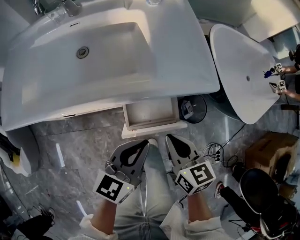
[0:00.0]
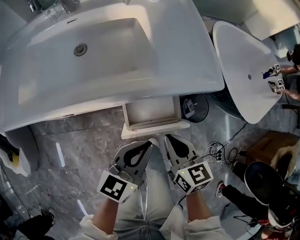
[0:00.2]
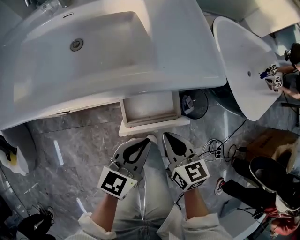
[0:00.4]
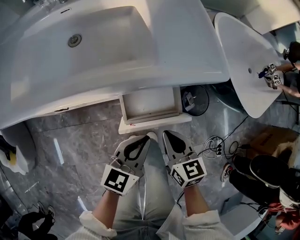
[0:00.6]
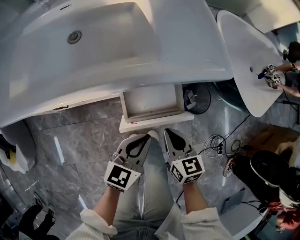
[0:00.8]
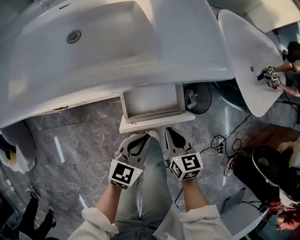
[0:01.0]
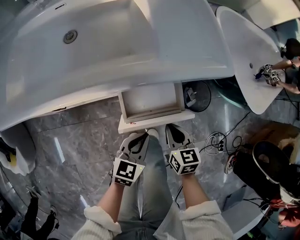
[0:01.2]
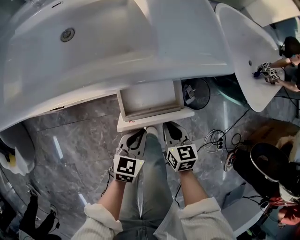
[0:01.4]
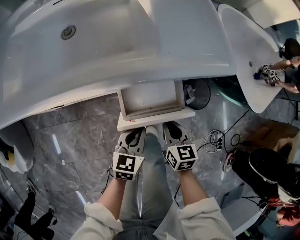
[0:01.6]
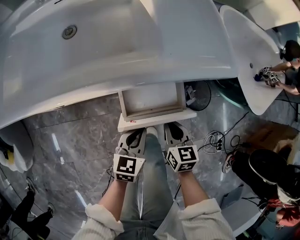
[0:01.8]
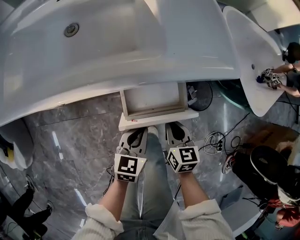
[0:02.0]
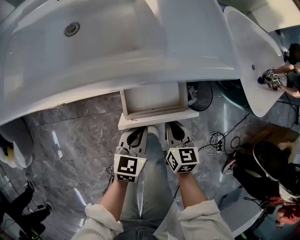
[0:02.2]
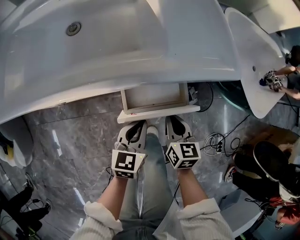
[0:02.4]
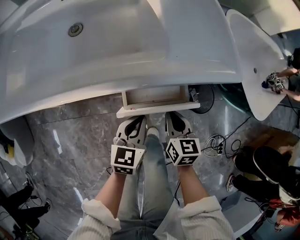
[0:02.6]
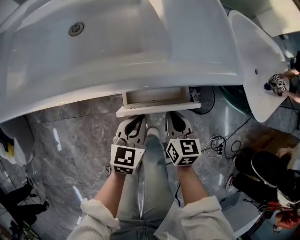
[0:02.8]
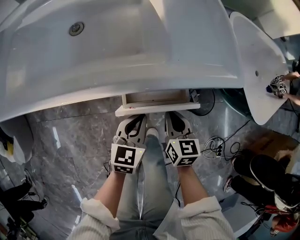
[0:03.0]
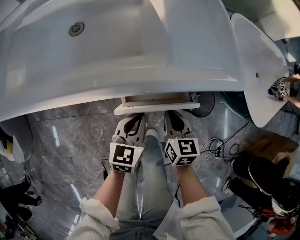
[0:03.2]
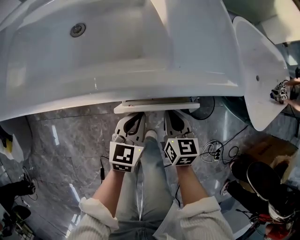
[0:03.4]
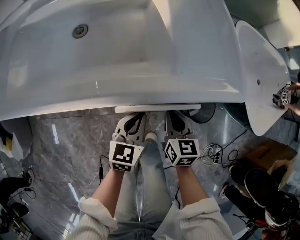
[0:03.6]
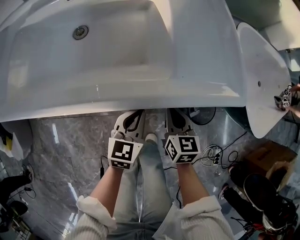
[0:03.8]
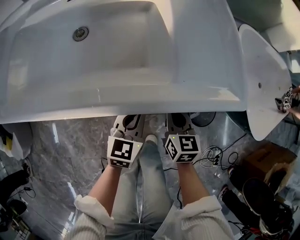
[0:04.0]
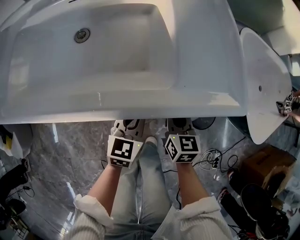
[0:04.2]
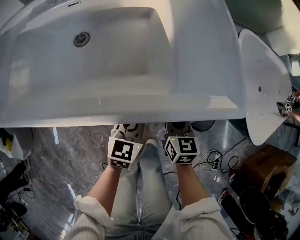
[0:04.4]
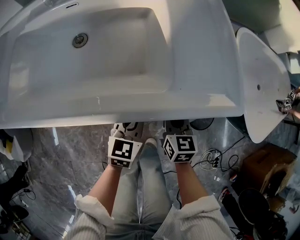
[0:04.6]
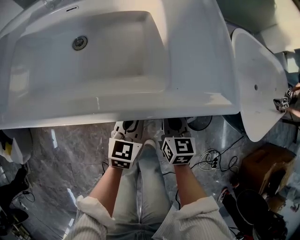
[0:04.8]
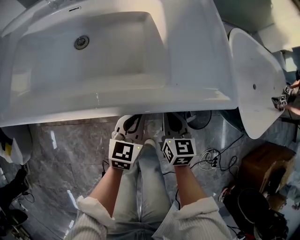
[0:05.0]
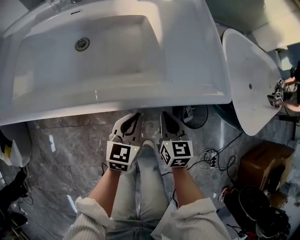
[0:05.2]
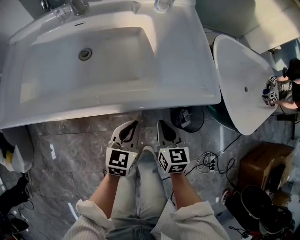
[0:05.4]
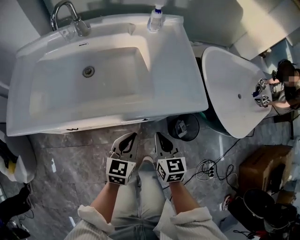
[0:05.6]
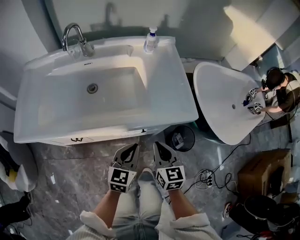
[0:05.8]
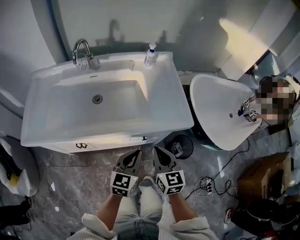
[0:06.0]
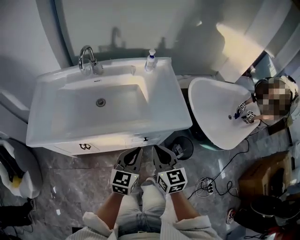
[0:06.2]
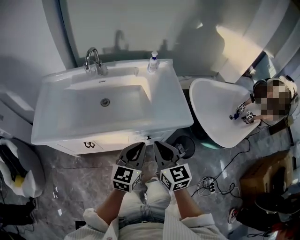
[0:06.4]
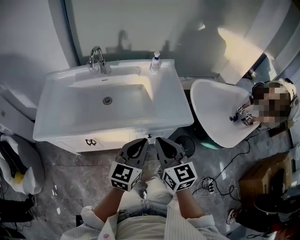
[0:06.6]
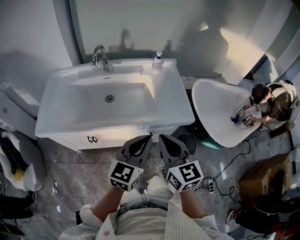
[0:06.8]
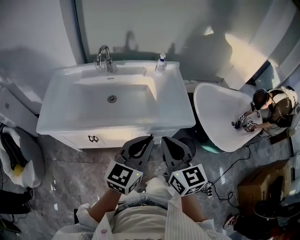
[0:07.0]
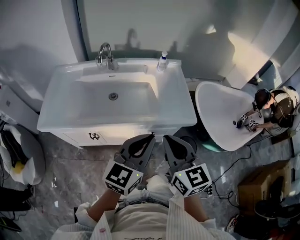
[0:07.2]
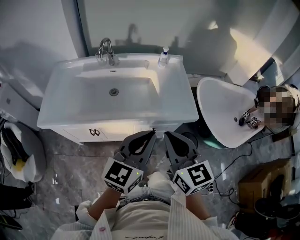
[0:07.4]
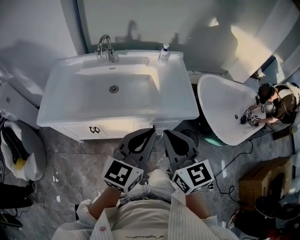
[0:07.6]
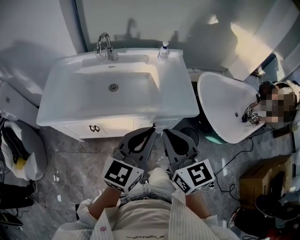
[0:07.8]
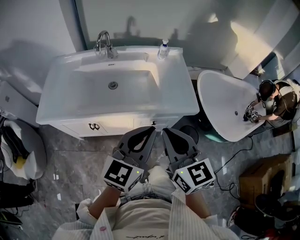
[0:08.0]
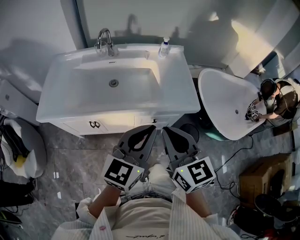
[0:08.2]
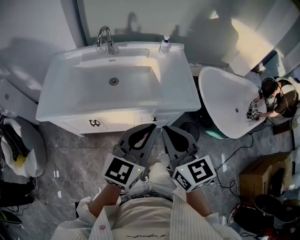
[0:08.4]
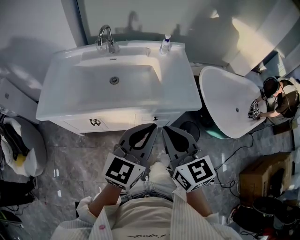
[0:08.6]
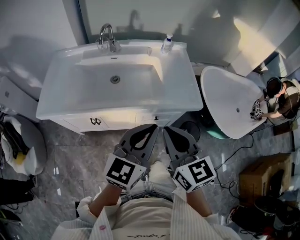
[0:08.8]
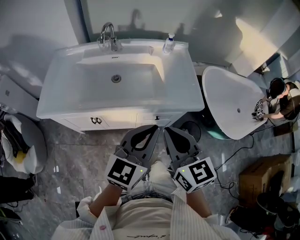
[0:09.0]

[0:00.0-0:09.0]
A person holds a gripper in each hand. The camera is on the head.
0.0 to 1.6 s: Both grippers travel together downward, approximately 20 cm.
1.6 to 3.0 s: Both grippers travel together forward, approximately 5 cm.
3.0 to 4.4 s: Both grippers move forward, roughly 10 cm.
4.4 to 6.0 s: The two grippers go roughly 20 cm upward and backward.
6.0 to 7.6 s: Both grippers travel together upward, some 20 cm.
7.6 to 9.0 s: The grippers make only small movements.

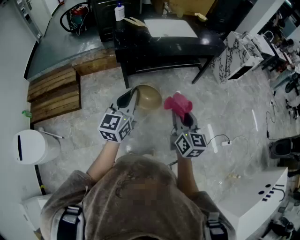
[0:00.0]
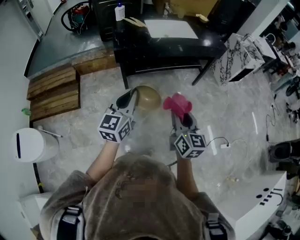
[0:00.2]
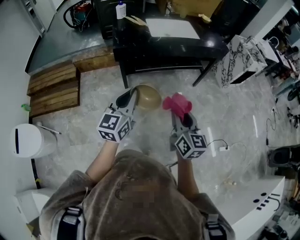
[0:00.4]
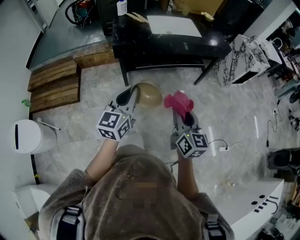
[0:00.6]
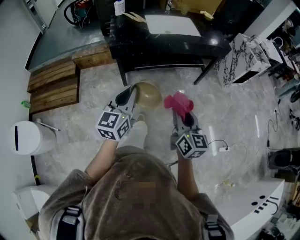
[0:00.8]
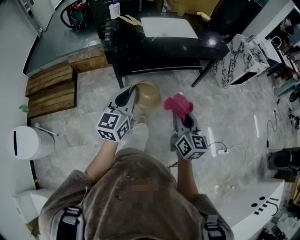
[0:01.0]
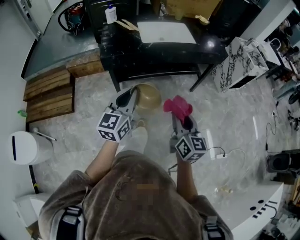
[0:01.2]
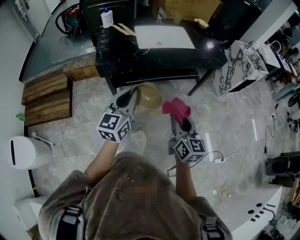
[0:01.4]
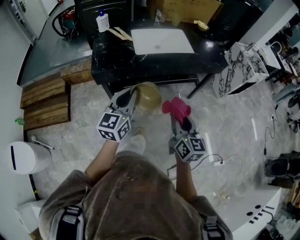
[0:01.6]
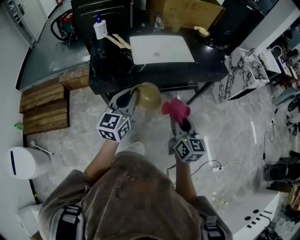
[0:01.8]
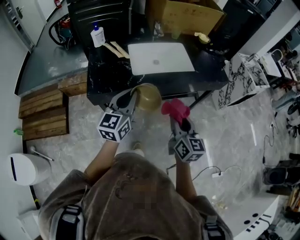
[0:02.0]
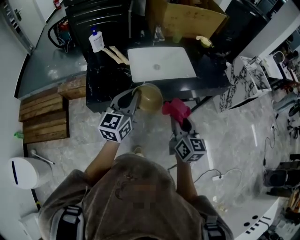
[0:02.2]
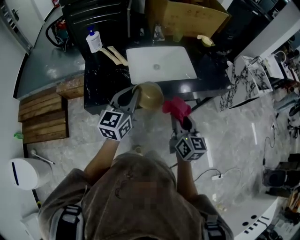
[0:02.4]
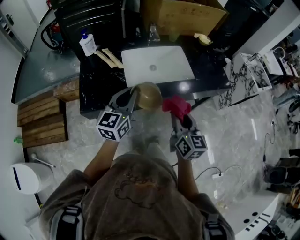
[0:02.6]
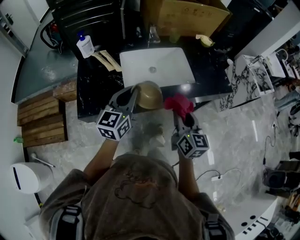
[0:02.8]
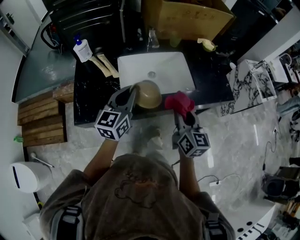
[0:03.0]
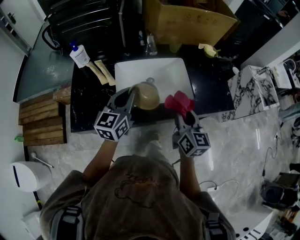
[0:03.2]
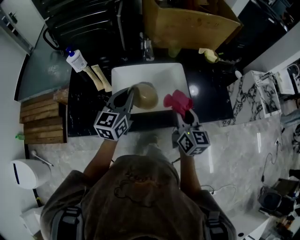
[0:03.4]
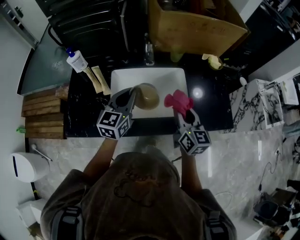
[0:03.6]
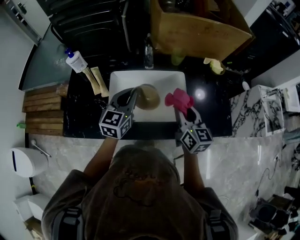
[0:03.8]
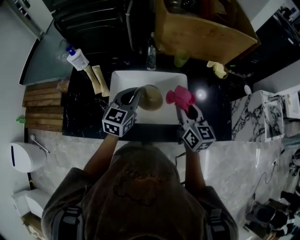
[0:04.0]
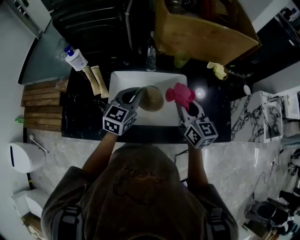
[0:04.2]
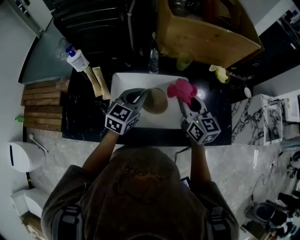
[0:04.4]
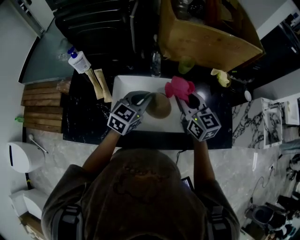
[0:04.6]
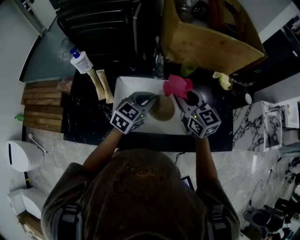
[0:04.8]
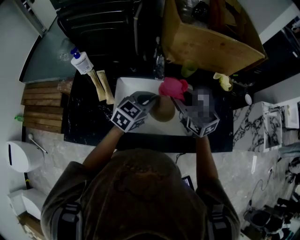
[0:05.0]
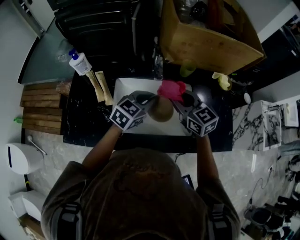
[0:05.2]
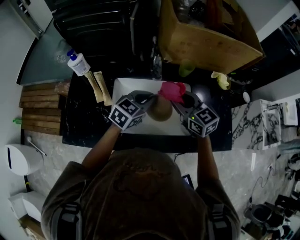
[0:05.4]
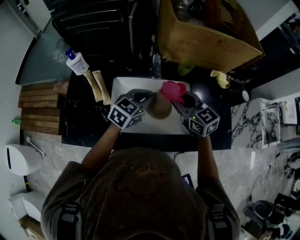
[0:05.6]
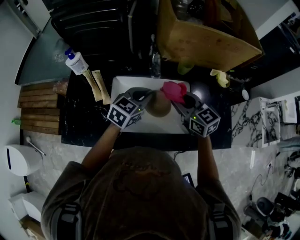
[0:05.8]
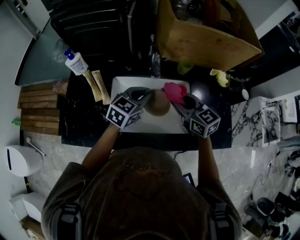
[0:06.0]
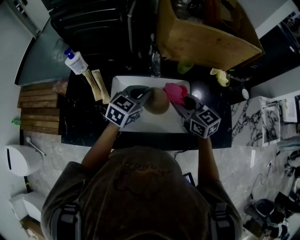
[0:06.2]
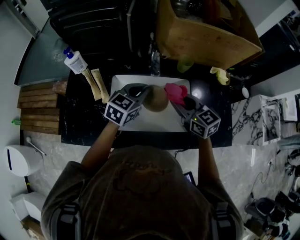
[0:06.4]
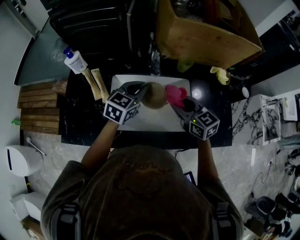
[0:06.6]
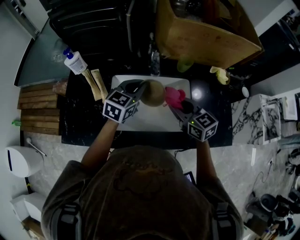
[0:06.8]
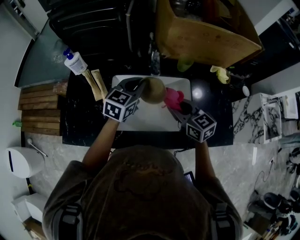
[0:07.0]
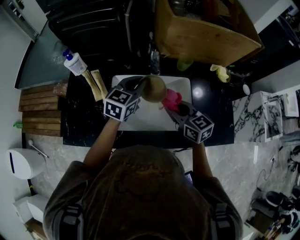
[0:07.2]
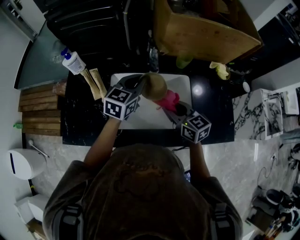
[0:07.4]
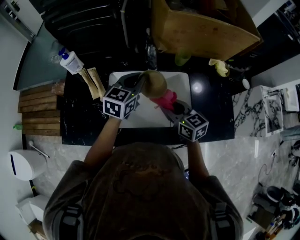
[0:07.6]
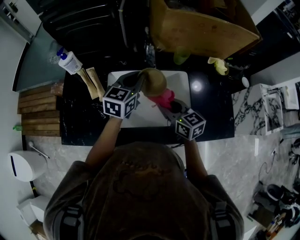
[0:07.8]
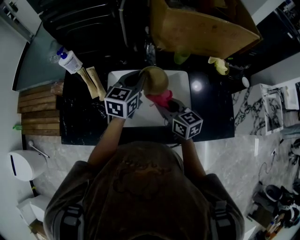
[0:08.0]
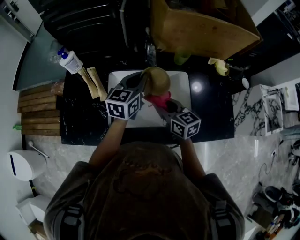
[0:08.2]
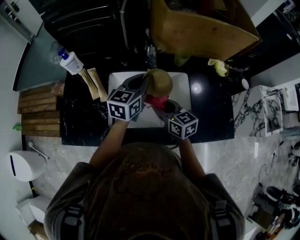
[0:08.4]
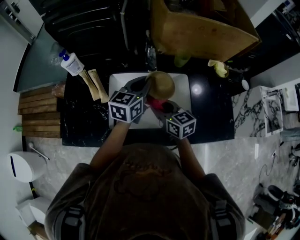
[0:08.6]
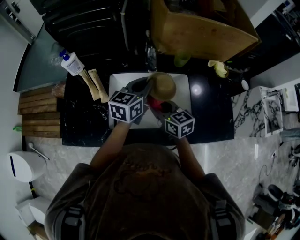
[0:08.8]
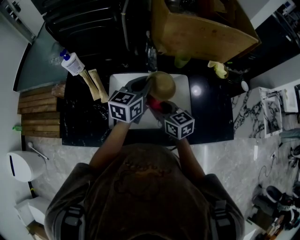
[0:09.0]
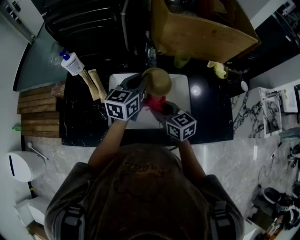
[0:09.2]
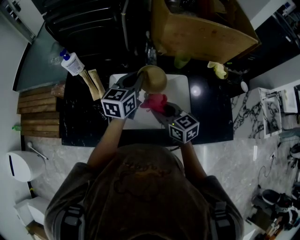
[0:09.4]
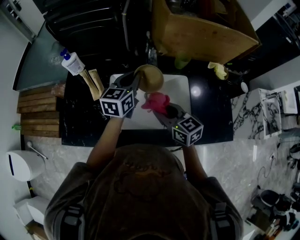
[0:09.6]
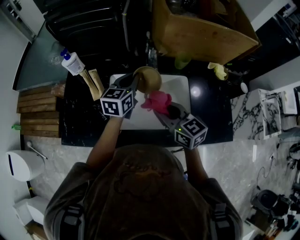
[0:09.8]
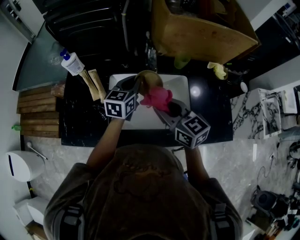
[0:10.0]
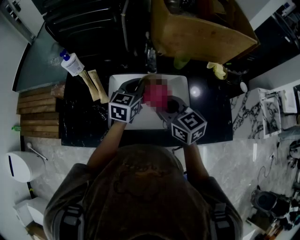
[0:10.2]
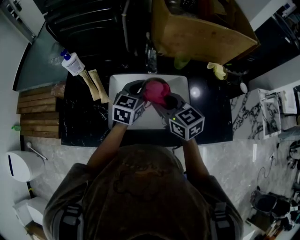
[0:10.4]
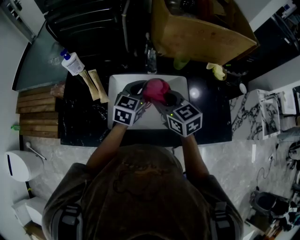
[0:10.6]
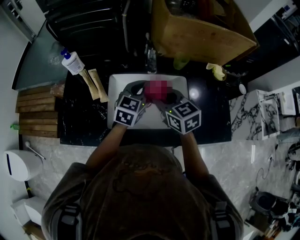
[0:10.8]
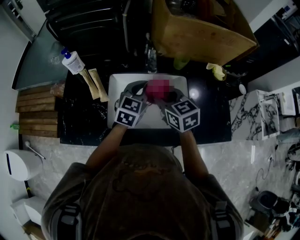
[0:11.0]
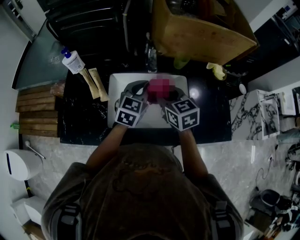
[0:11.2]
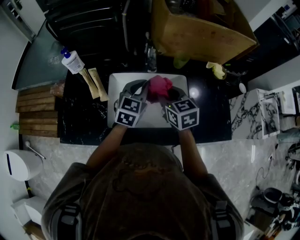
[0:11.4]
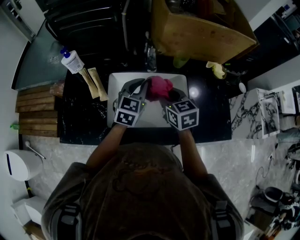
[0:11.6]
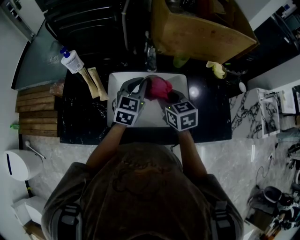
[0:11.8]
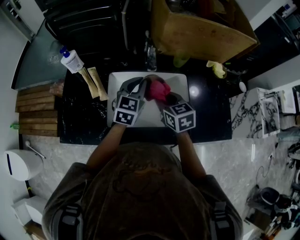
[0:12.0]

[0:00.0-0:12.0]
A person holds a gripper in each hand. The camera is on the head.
0.0 to 1.6 s: The two grippers go roughly 25 cm forward and to the right.
1.6 to 3.0 s: The grippers both shift forward by about 35 cm.
3.0 to 4.4 s: The right gripper goes some 25 cm forward, and rotates about 20 degrees. The left gripper heads forward and to the right, covering about 20 cm.
4.4 to 6.0 s: The right gripper travels to the left by roughly 5 cm, and changes its angle by roughly 20 degrees.
6.0 to 7.6 s: The right gripper shifts some 5 cm downward.
7.6 to 9.0 s: The right gripper changes place by approximately 5 cm.
9.0 to 10.4 s: The right gripper heads upward, covering some 10 cm.
10.4 to 12.0 s: The right gripper shifts some 5 cm downward.

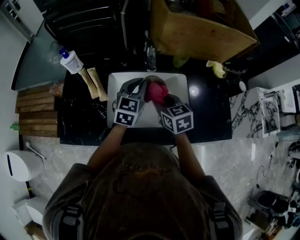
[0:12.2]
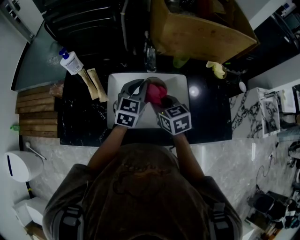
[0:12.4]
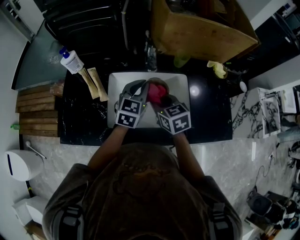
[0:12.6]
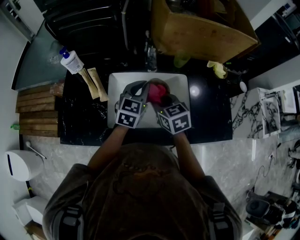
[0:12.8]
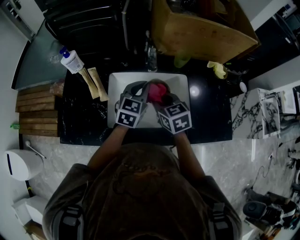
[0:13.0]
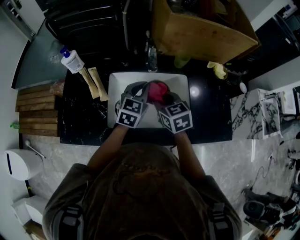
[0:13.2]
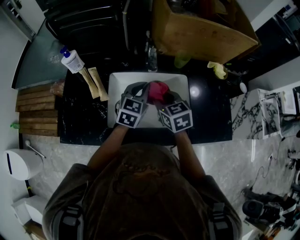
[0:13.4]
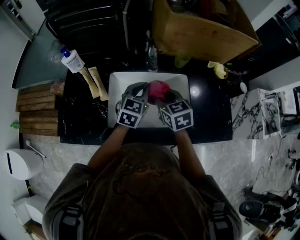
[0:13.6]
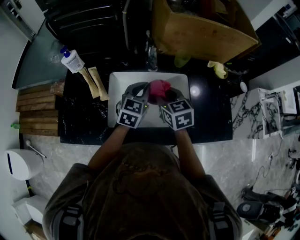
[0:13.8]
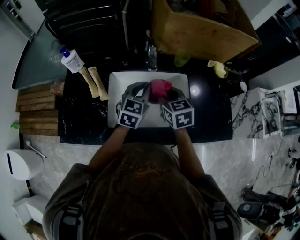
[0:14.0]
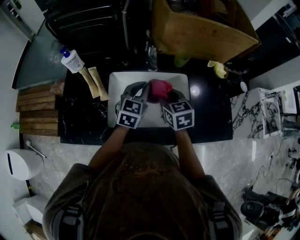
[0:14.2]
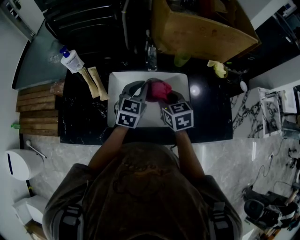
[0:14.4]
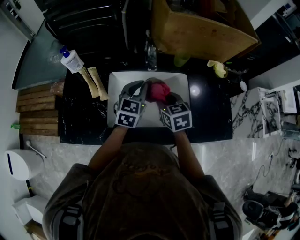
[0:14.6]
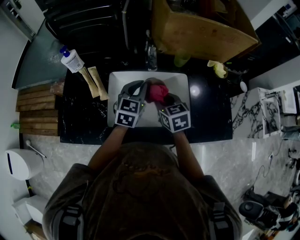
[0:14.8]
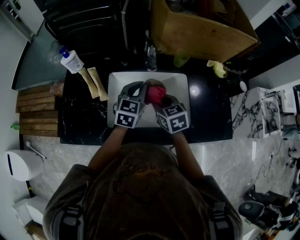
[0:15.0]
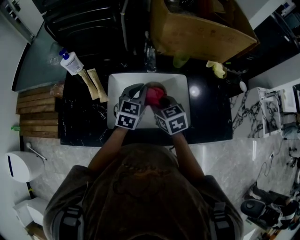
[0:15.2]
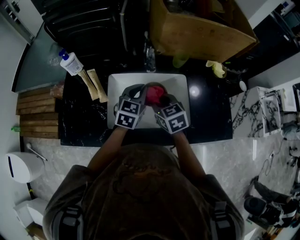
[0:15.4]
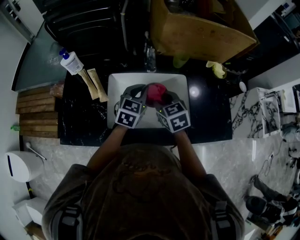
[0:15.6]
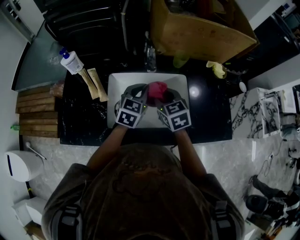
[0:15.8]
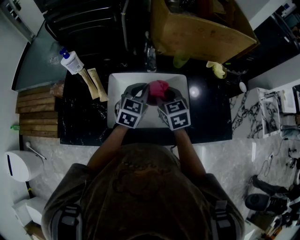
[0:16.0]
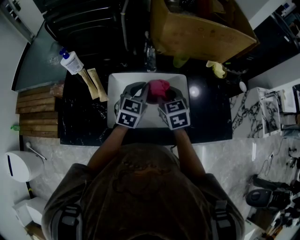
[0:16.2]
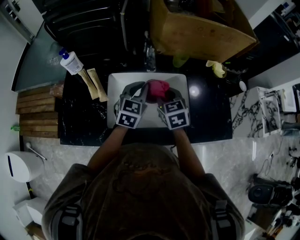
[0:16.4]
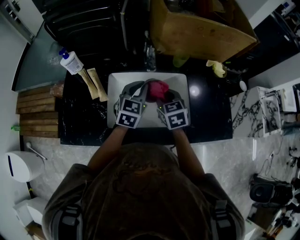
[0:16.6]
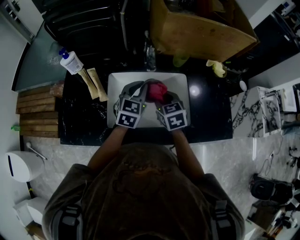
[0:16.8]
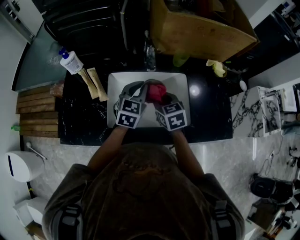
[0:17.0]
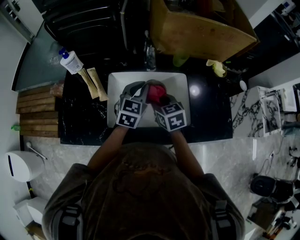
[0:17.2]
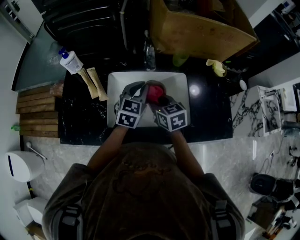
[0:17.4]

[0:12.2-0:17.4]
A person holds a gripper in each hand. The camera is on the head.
12.2 to 17.4 s: The grippers make only small movements.
